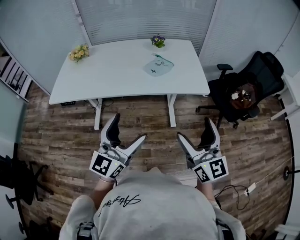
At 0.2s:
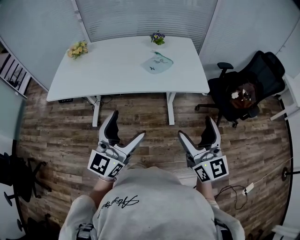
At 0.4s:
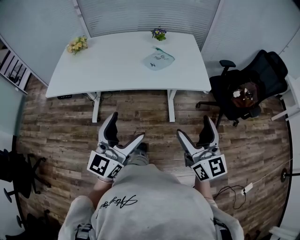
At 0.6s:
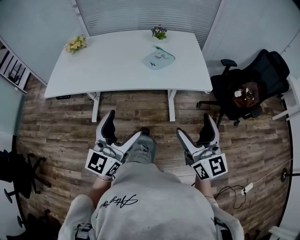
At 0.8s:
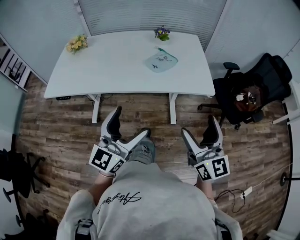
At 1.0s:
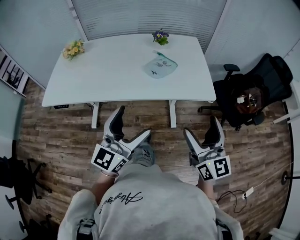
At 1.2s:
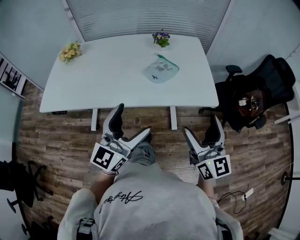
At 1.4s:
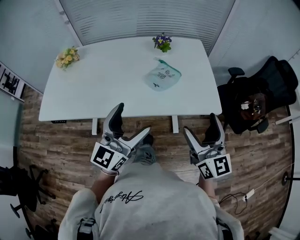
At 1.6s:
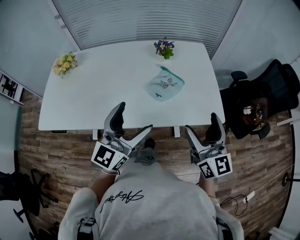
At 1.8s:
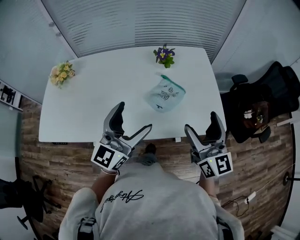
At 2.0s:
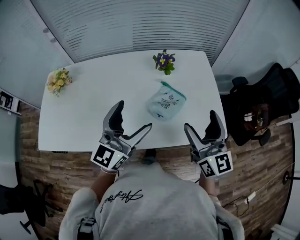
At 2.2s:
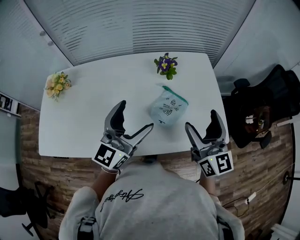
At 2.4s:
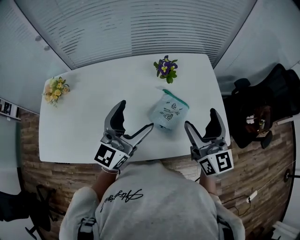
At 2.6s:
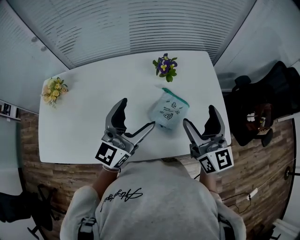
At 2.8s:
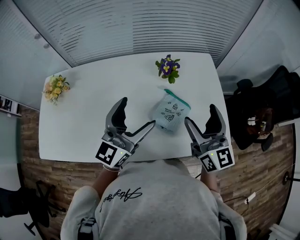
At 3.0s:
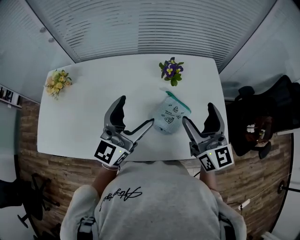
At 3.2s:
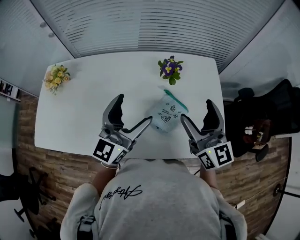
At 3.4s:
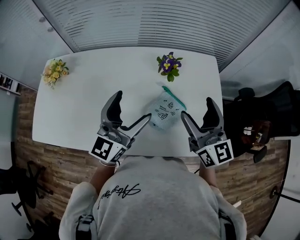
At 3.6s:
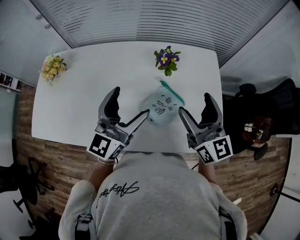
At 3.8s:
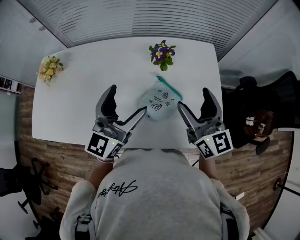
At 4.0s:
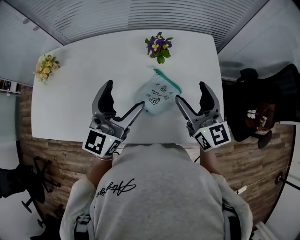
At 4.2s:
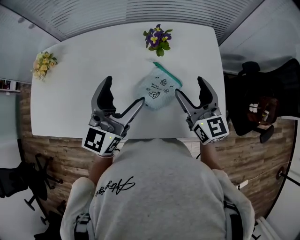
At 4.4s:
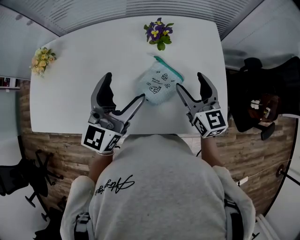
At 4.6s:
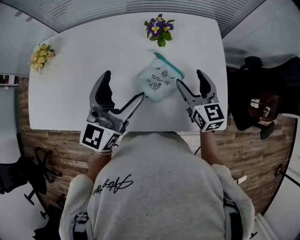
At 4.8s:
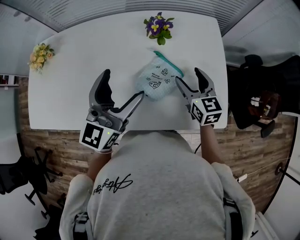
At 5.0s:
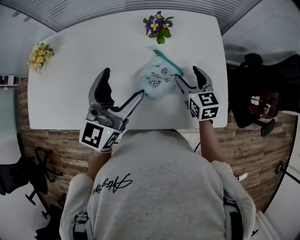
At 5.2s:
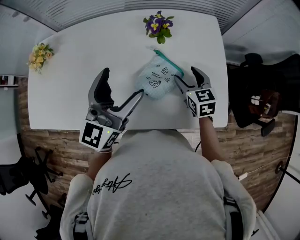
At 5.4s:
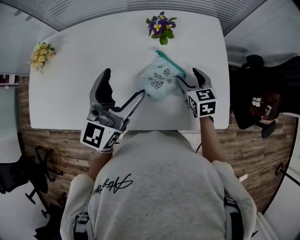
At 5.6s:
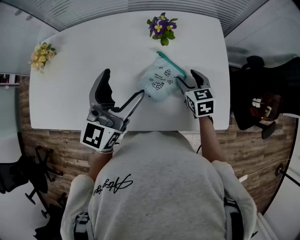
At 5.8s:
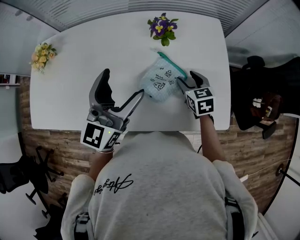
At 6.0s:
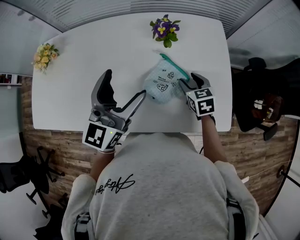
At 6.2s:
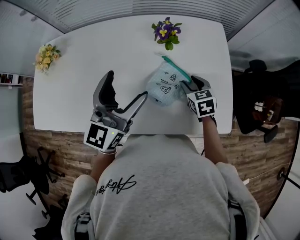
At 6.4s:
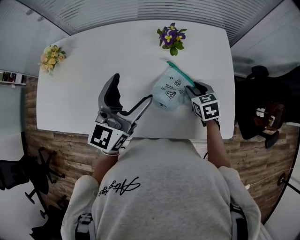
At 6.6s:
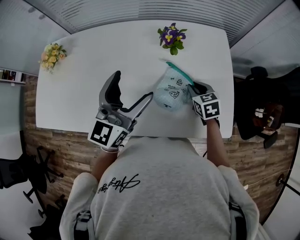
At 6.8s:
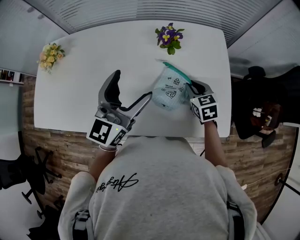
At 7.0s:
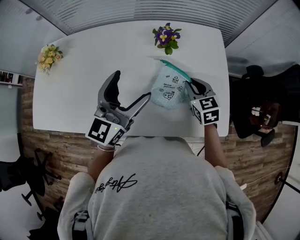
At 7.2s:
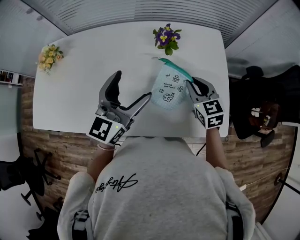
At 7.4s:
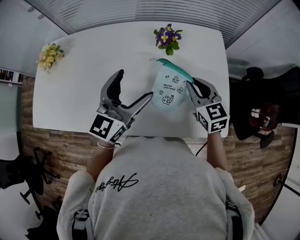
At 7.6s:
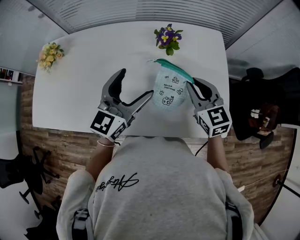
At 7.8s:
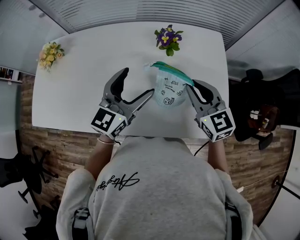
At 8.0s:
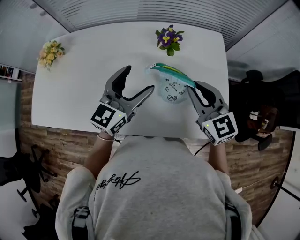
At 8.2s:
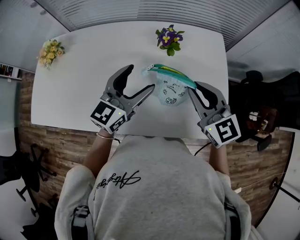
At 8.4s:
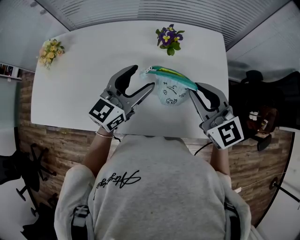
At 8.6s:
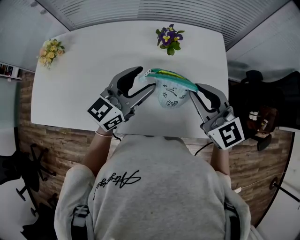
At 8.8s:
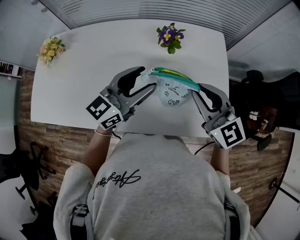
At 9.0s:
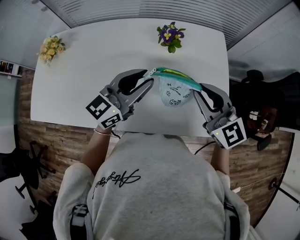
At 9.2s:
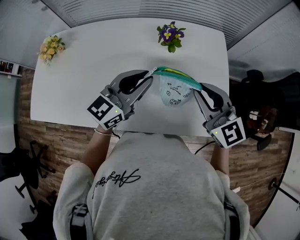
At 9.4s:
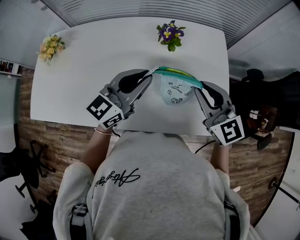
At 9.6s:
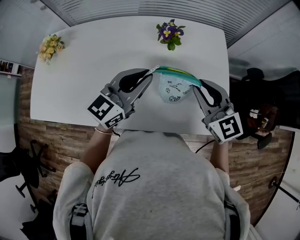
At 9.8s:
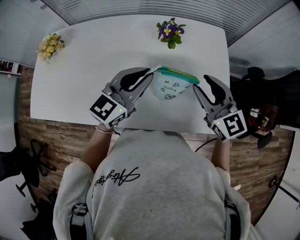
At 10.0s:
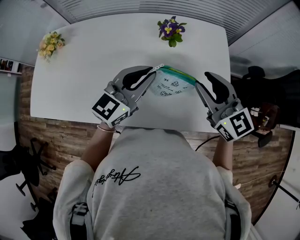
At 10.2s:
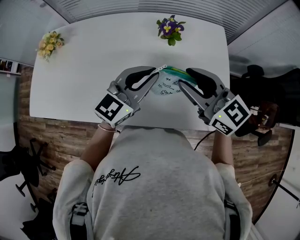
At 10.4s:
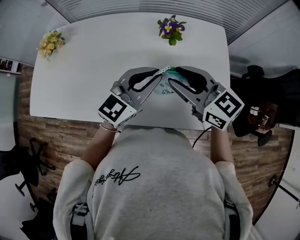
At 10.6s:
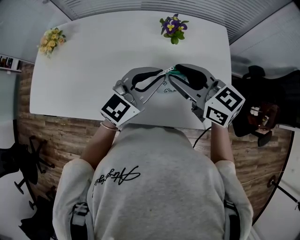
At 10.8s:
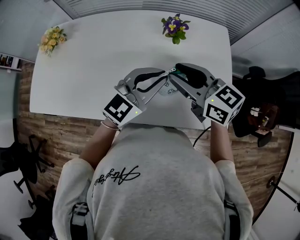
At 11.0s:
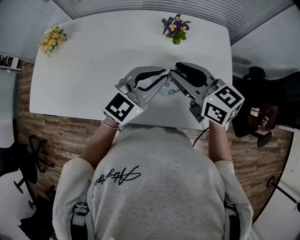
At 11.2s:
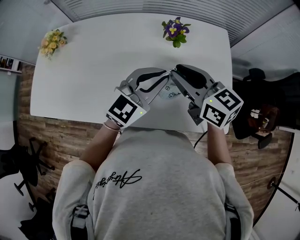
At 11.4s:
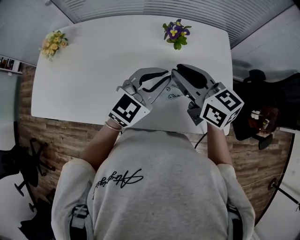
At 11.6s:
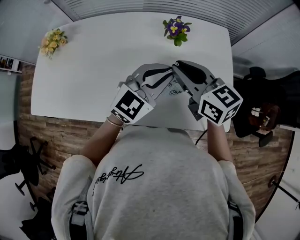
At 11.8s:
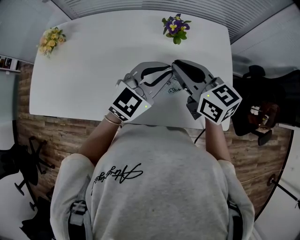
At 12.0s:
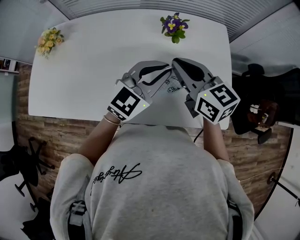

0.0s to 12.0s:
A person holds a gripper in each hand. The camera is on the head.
0.0s to 1.6s: The grippers both shift forward by about 25 cm.
1.6s to 3.0s: The grippers both shift forward by some 20 cm.
3.0s to 4.4s: The right gripper heads downward, covering about 10 cm; the left gripper changes place by roughly 5 cm.
4.4s to 6.0s: The right gripper heads downward, covering approximately 15 cm, and tips its fingers downward by approximately 30 degrees.
6.0s to 7.6s: The right gripper heads upward, covering approximately 15 cm, changes its angle by approximately 20 degrees, and closes.
7.6s to 9.0s: The left gripper closes. The right gripper goes about 10 cm upward, and turns by about 20 degrees.
9.0s to 10.4s: The right gripper heads to the left, covering roughly 5 cm, and rotates about 20 degrees.
10.4s to 12.0s: The grippers stay close to where they were, moving slightly.

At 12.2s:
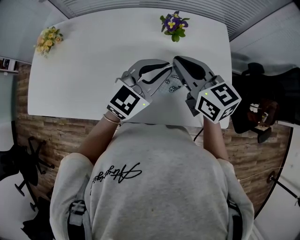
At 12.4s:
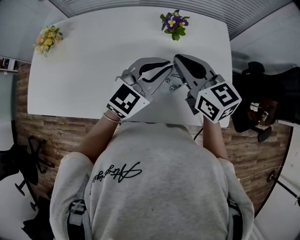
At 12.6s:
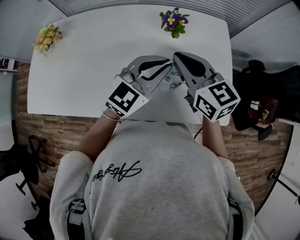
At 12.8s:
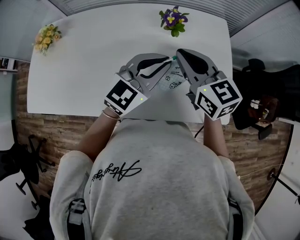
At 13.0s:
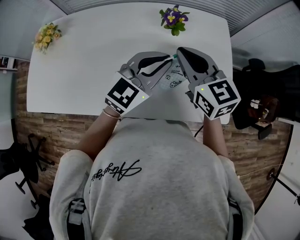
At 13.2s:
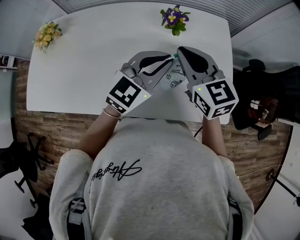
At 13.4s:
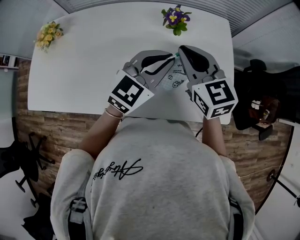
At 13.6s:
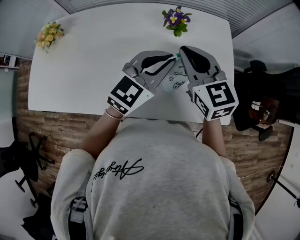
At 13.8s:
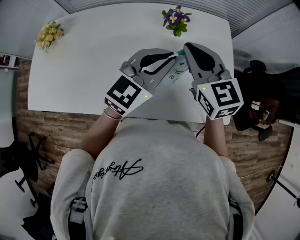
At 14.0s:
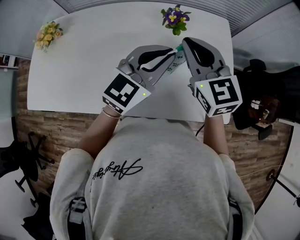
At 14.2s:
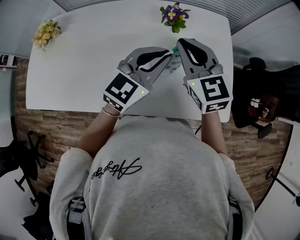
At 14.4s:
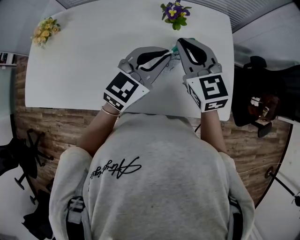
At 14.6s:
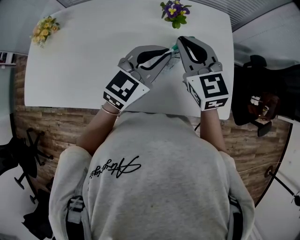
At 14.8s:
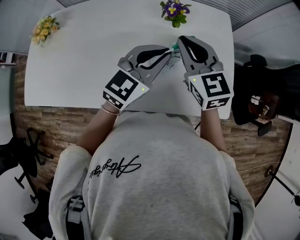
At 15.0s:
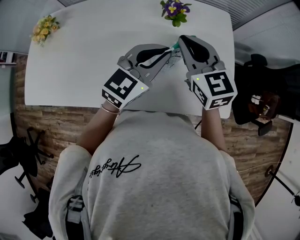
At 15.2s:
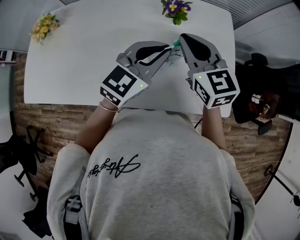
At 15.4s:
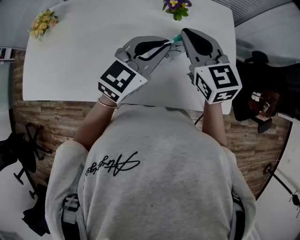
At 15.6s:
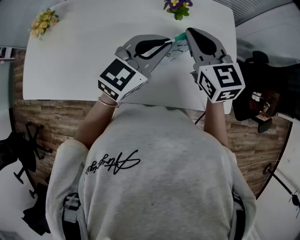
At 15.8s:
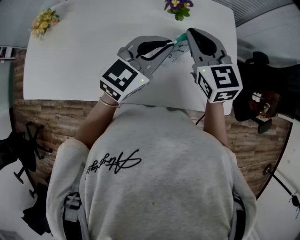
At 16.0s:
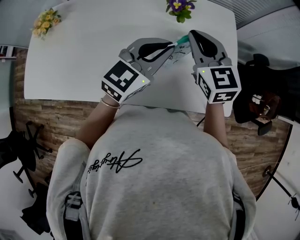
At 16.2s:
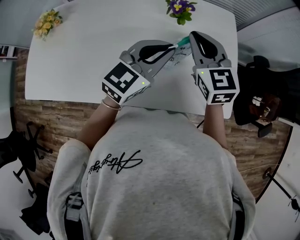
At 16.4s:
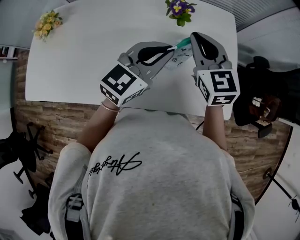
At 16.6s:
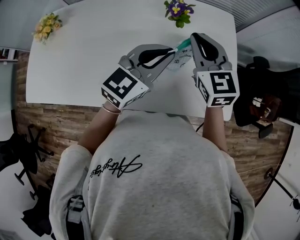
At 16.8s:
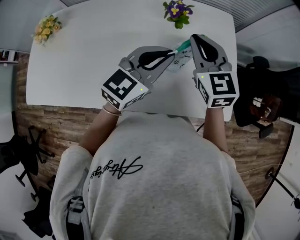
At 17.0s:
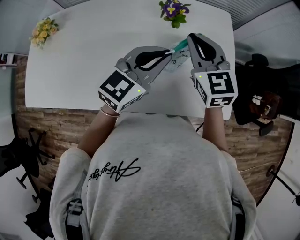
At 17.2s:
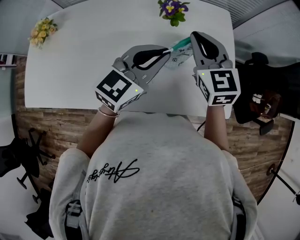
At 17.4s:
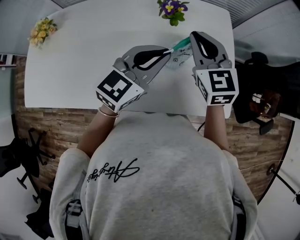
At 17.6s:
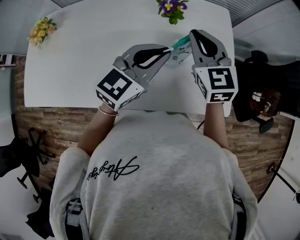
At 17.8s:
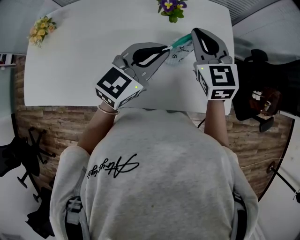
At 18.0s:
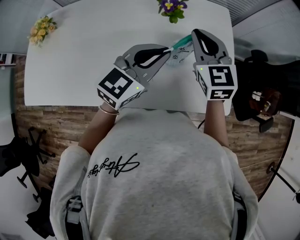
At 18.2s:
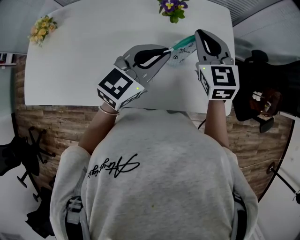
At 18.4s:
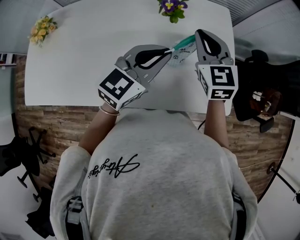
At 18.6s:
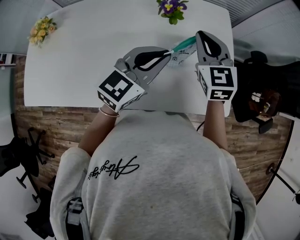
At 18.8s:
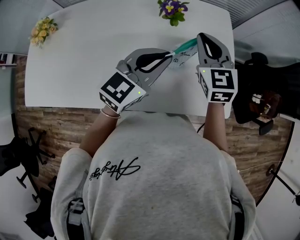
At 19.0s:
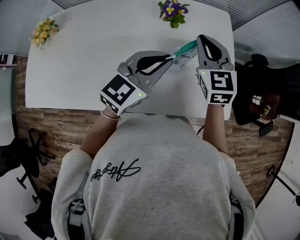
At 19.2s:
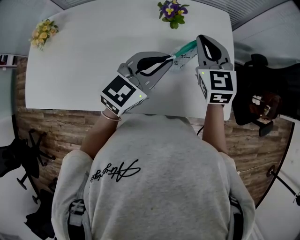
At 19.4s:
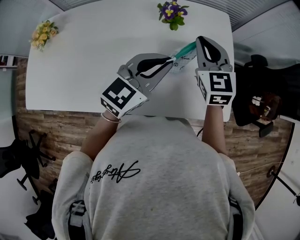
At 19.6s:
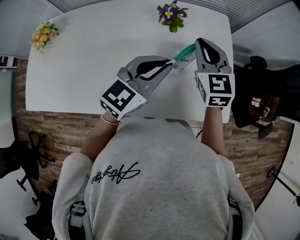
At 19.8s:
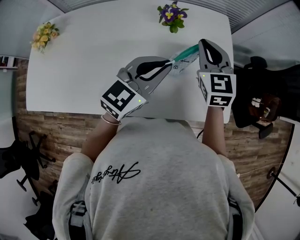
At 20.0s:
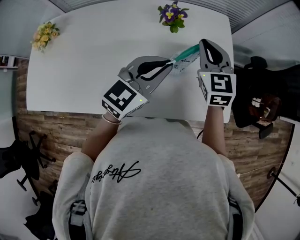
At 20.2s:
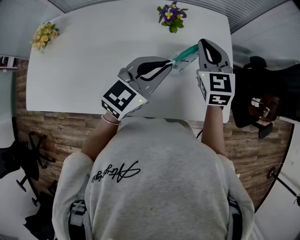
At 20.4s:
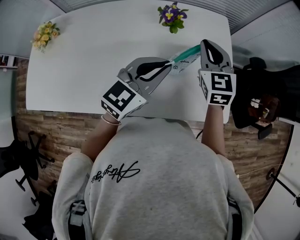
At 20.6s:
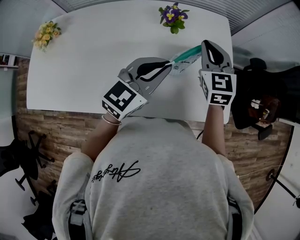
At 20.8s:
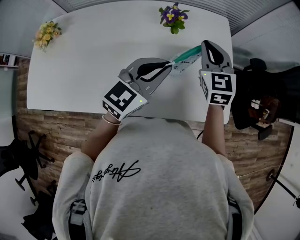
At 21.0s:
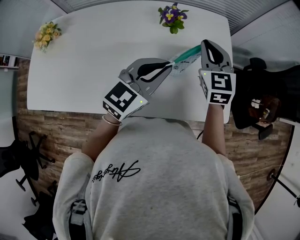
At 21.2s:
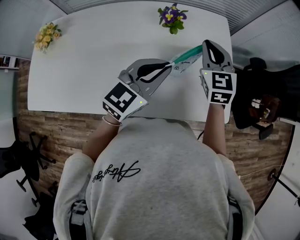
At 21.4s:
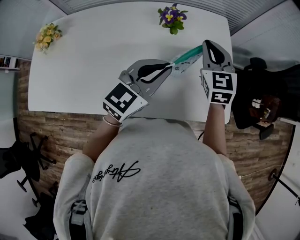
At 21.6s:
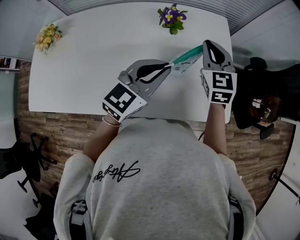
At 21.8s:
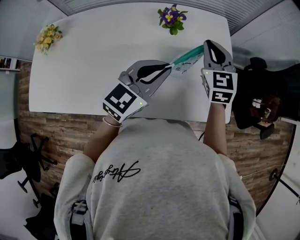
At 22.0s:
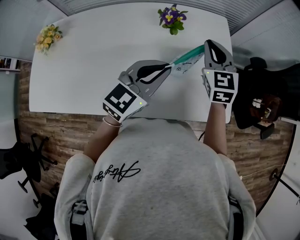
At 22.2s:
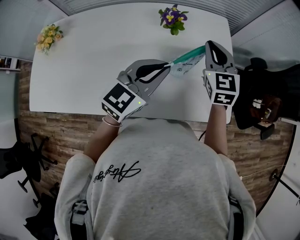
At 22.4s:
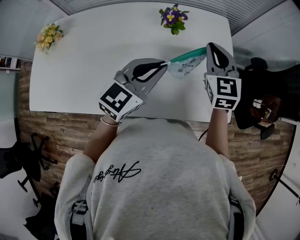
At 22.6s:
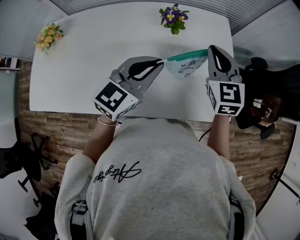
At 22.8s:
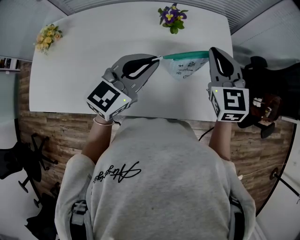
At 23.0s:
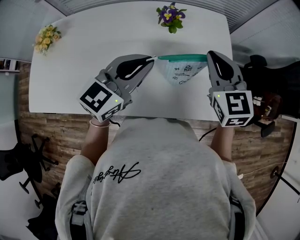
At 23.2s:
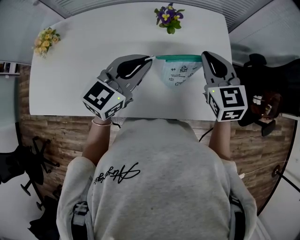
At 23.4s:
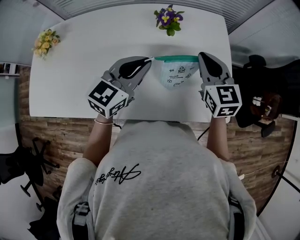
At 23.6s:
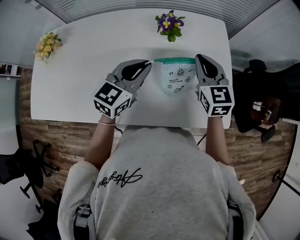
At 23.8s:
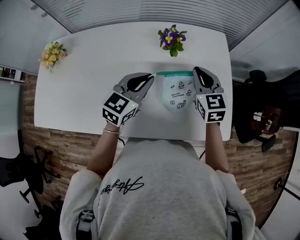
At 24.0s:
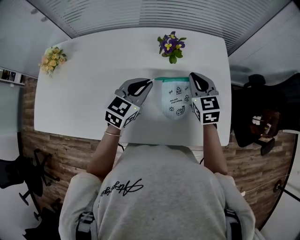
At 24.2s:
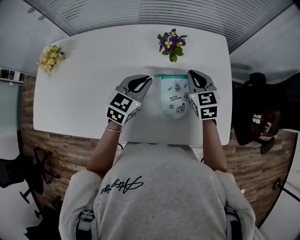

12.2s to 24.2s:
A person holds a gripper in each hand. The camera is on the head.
12.2s to 13.8s: The right gripper swivels roughly 20 degrees.
13.8s to 16.6s: The grippers move only a little.
16.6s to 19.8s: The grippers make only small movements.
19.8s to 22.6s: The grippers stay close to where they were, moving slightly.
22.6s to 24.2s: The right gripper goes approximately 10 cm downward; the left gripper travels downward, forward and to the left by some 15 cm.
